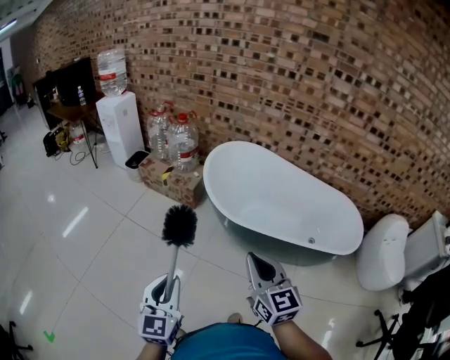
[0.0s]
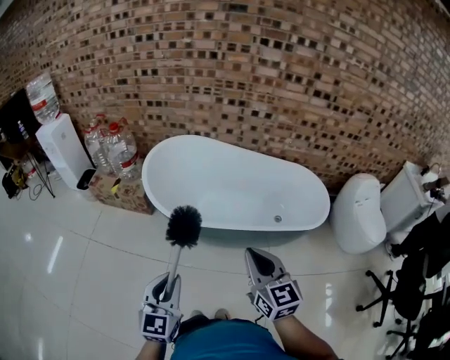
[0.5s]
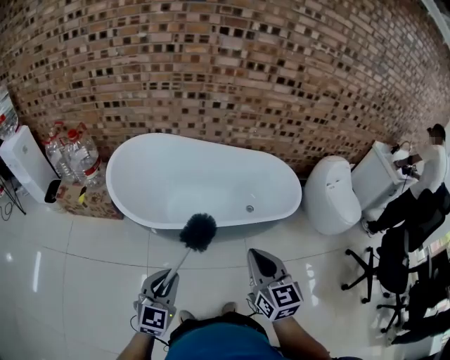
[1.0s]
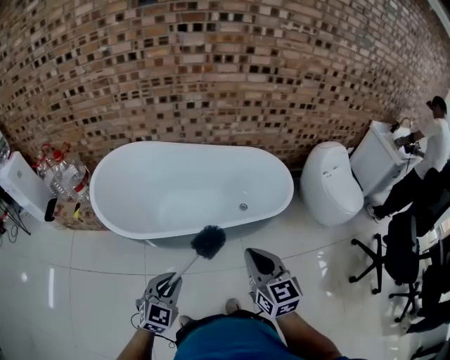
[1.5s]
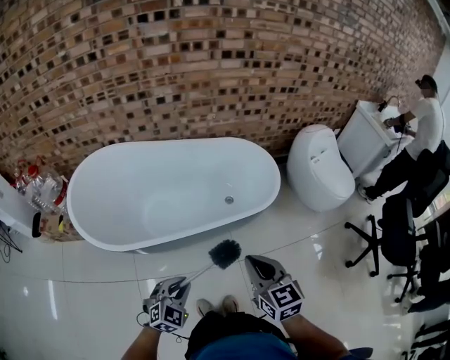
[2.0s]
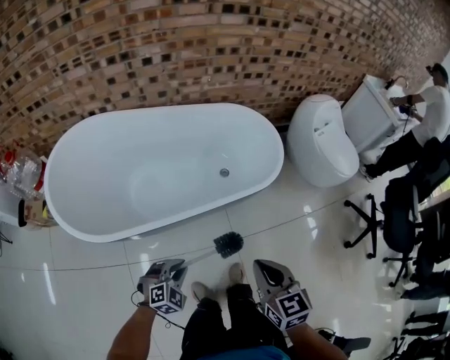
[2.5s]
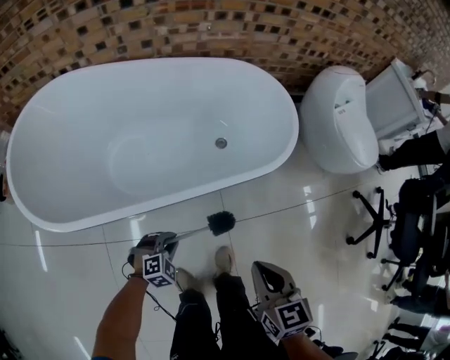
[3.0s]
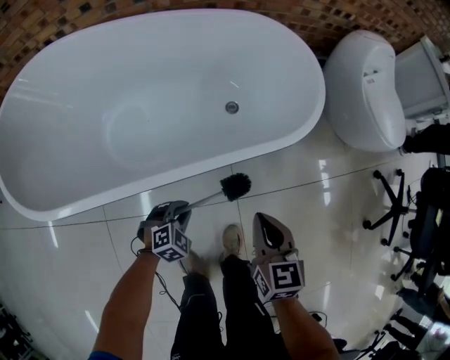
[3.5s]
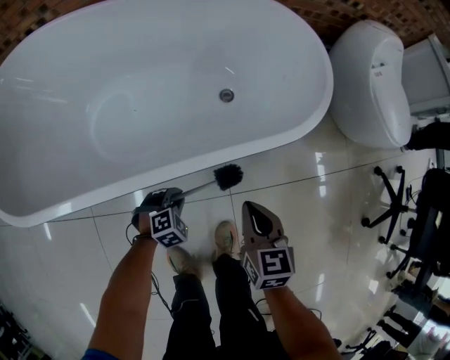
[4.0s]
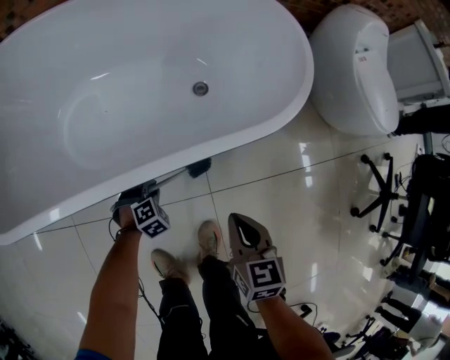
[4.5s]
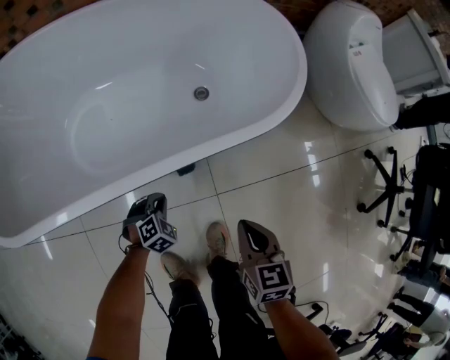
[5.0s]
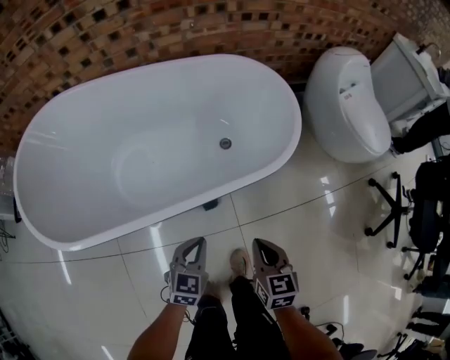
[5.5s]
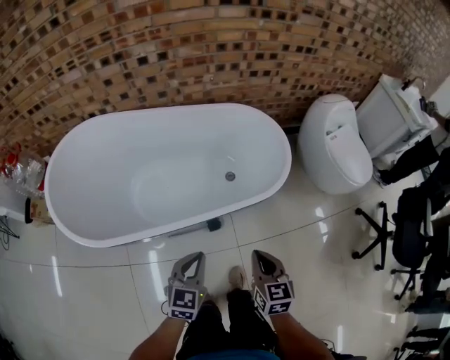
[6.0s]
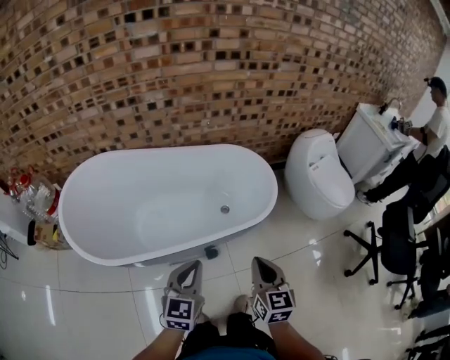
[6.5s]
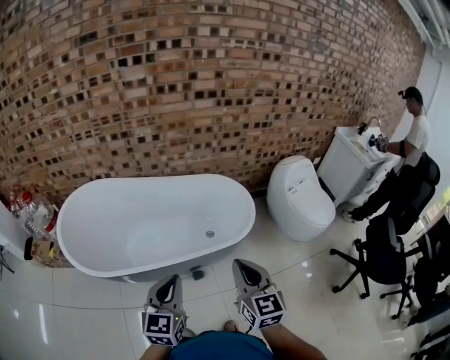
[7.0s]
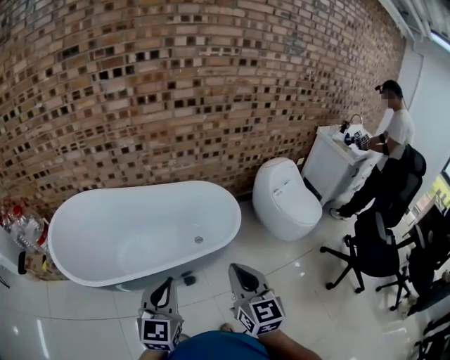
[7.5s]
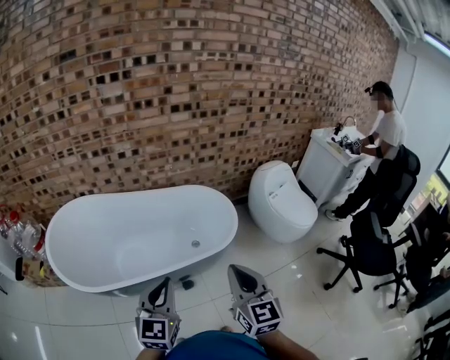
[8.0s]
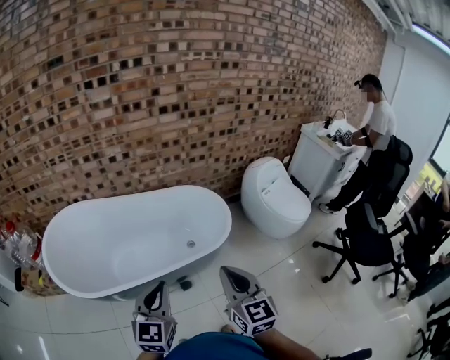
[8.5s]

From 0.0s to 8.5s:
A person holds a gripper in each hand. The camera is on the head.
From 0.0s to 2.0s: The pair of grippers is taken some 50 cm. The left gripper turns by roughly 70 degrees; the right gripper turns by about 30 degrees.
From 2.0s to 4.0s: The right gripper travels downward by approximately 50 cm, while the left gripper heads downward and forward, covering roughly 60 cm, and swivels about 30 degrees.
From 4.0s to 6.5s: The two grippers go about 50 cm upward. The left gripper points its fingers approximately 50 degrees further upward.
From 6.5s to 8.5s: The left gripper shifts roughly 15 cm upward and backward, while the right gripper moves upward, approximately 15 cm.

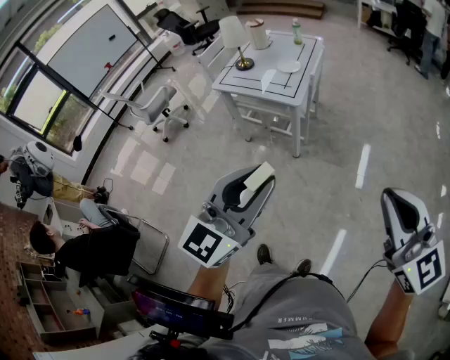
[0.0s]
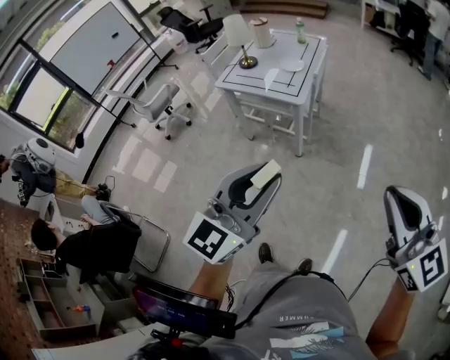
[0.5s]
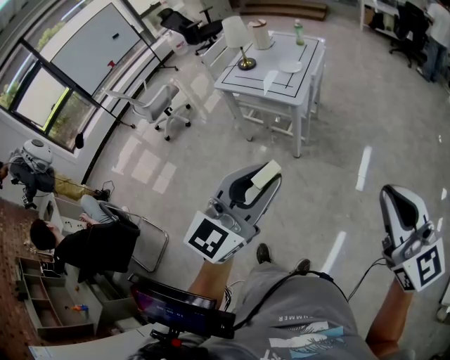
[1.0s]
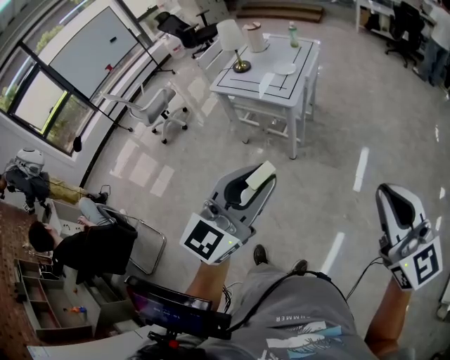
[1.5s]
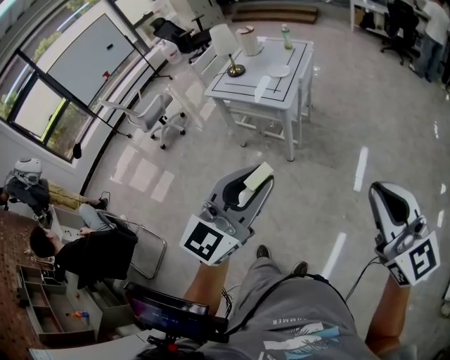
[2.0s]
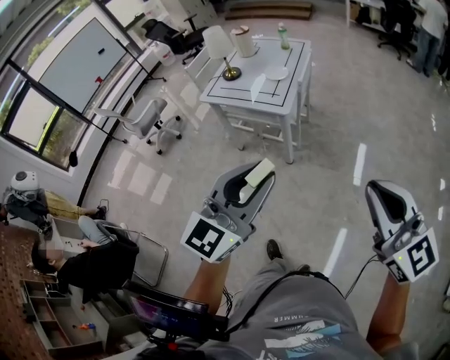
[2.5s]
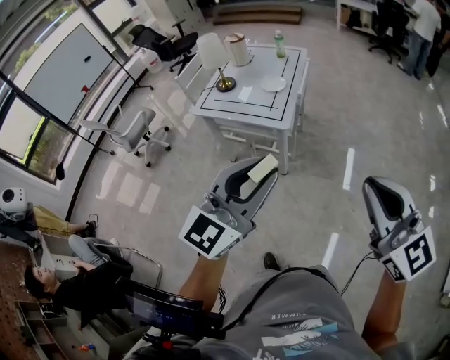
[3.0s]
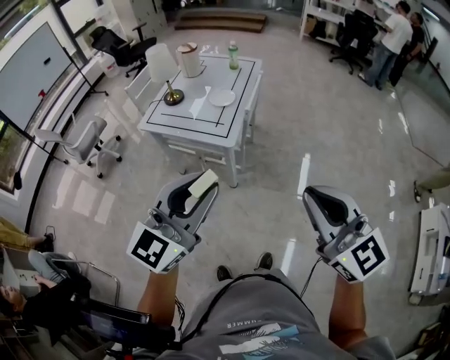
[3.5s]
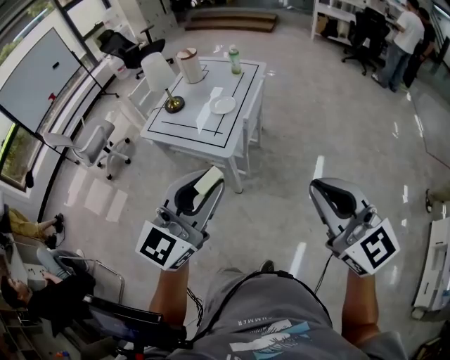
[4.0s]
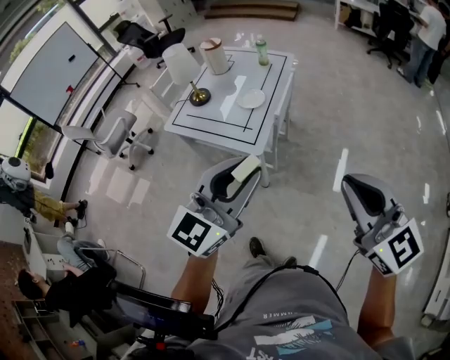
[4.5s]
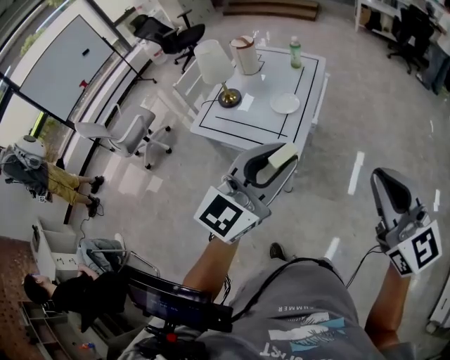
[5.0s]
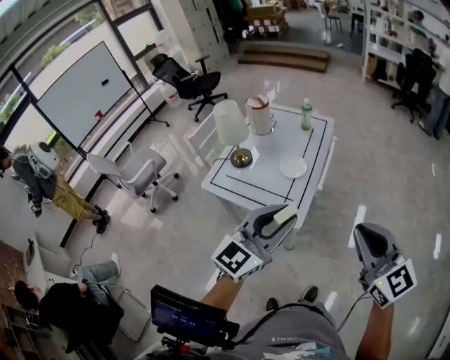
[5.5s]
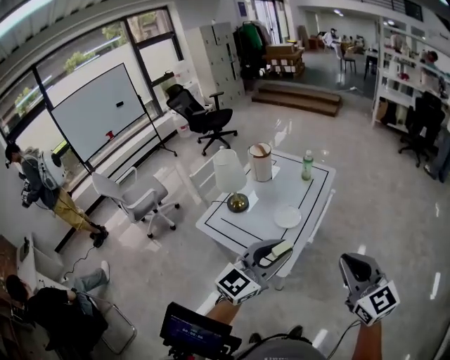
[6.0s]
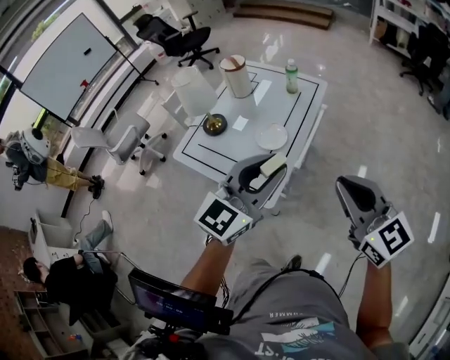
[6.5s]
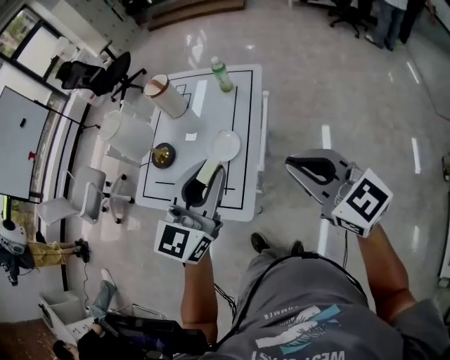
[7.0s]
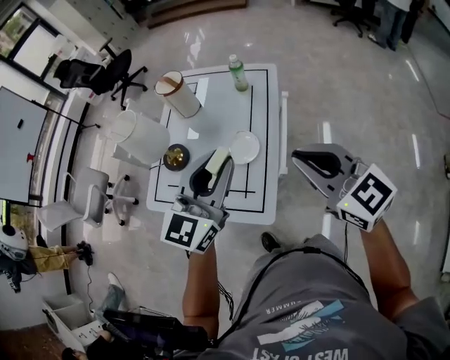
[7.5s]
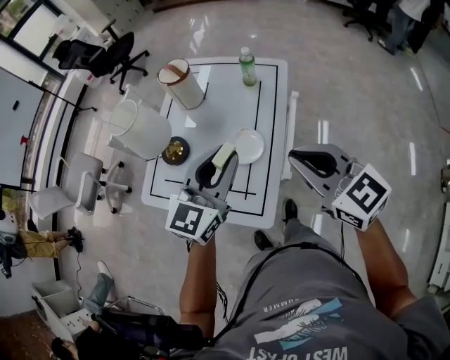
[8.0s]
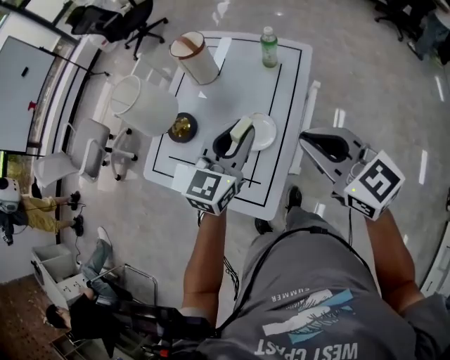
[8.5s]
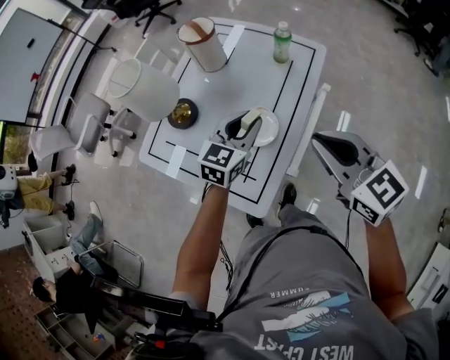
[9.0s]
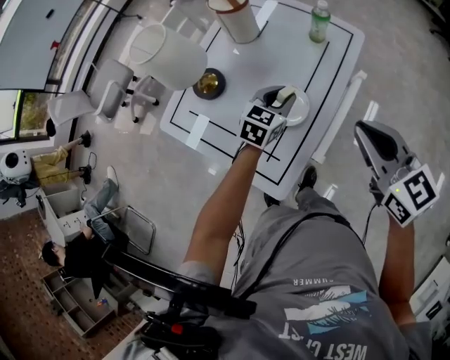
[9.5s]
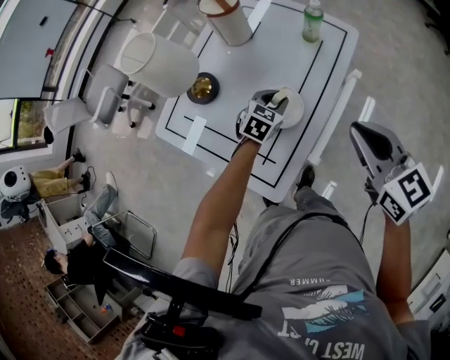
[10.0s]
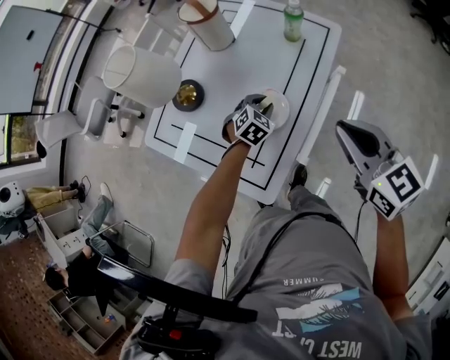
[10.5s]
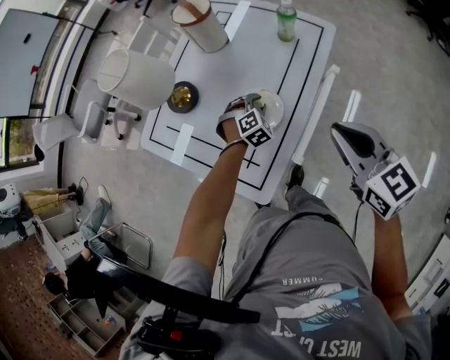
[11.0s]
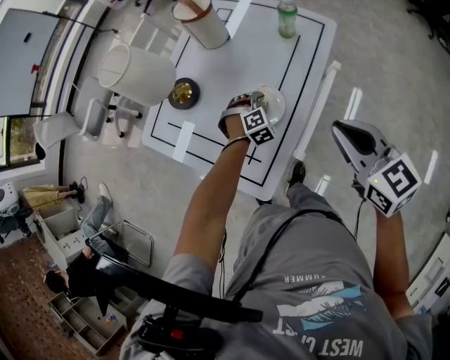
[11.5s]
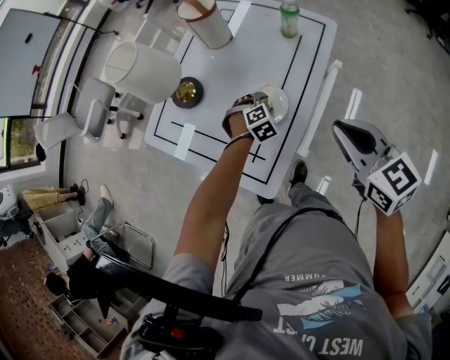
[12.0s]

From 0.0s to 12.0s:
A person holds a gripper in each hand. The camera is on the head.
From 0.0s to 2.0s: There are only small adjustments of the grippers.
From 2.0s to 4.0s: The two grippers go about 30 cm forward.
From 4.0s to 6.0s: The two grippers go about 25 cm forward.
From 6.0s to 8.0s: Both grippers travel together forward, about 25 cm.
From 8.0s to 10.0s: The left gripper goes roughly 30 cm downward and forward, and angles its fingers downward, by approximately 40 degrees; the right gripper is displaced forward, to the right and downward by approximately 15 cm.
From 10.0s to 12.0s: The left gripper shifts approximately 10 cm downward, and rotates about 40 degrees.

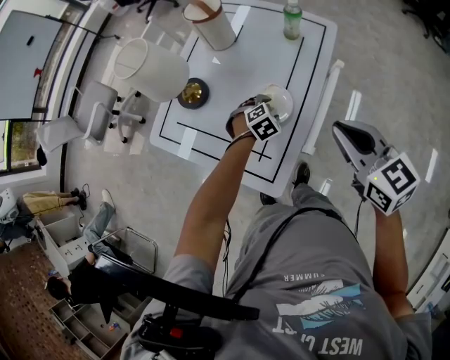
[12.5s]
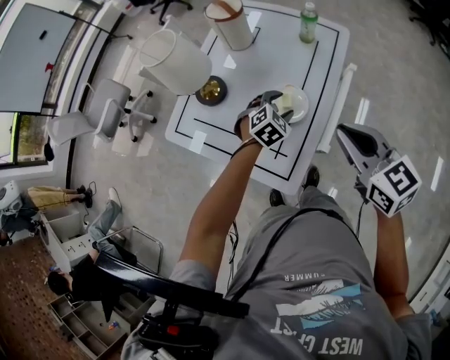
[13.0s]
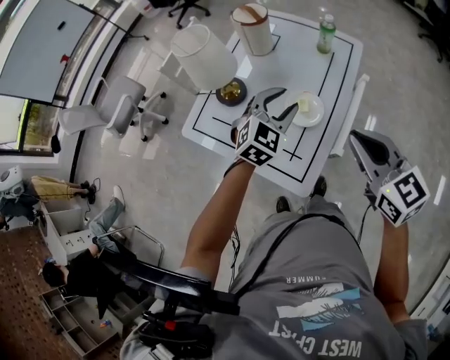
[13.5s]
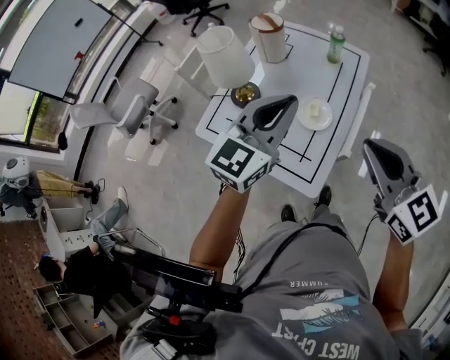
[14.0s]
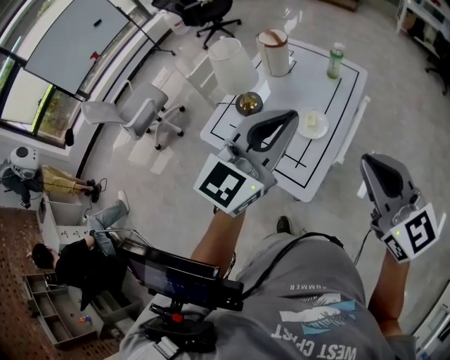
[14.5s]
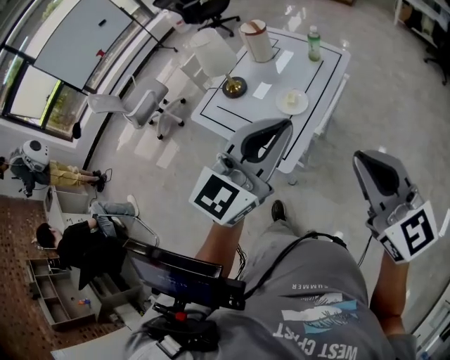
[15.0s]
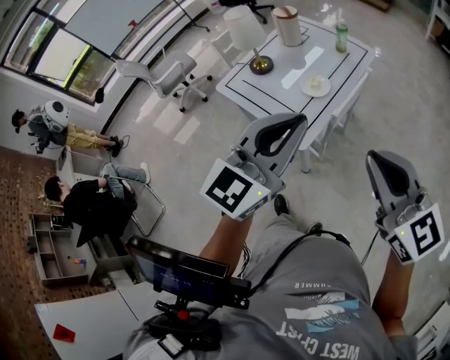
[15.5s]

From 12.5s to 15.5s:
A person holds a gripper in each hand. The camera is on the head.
From 12.5s to 14.0s: The right gripper is displaced upward, backward and to the left by roughly 15 cm. The left gripper travels upward by about 40 cm, tips its fingers upward by roughly 60 degrees, and closes.
From 14.0s to 15.5s: The right gripper travels backward and to the right by about 25 cm. The left gripper shifts about 30 cm backward.

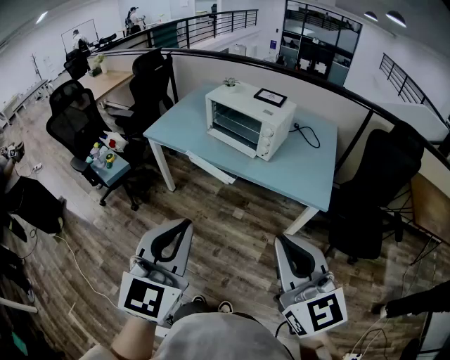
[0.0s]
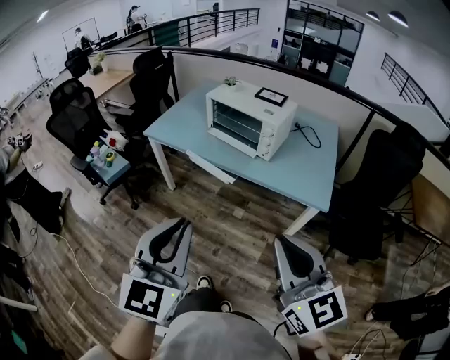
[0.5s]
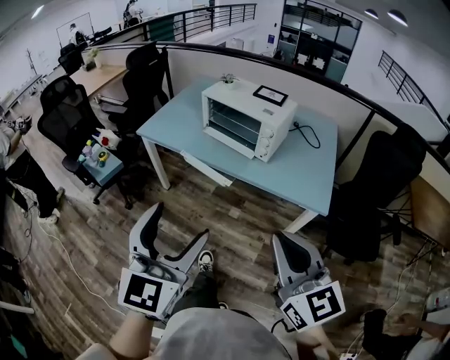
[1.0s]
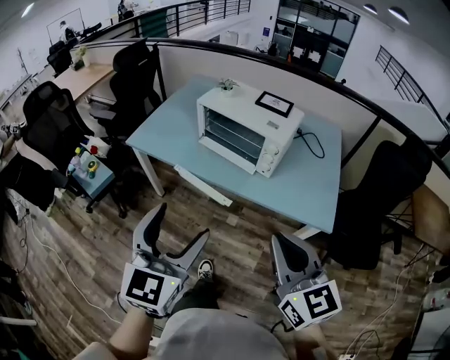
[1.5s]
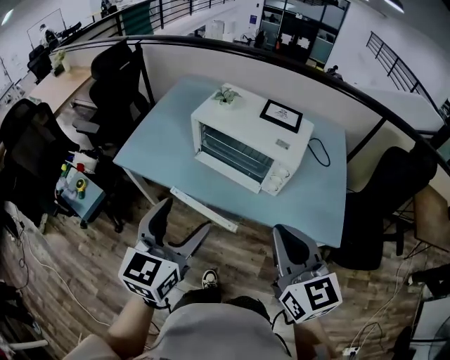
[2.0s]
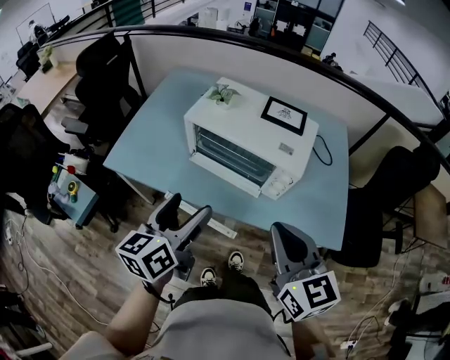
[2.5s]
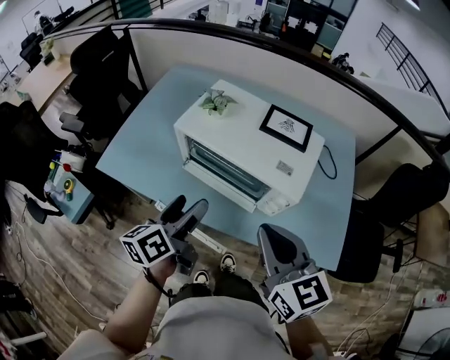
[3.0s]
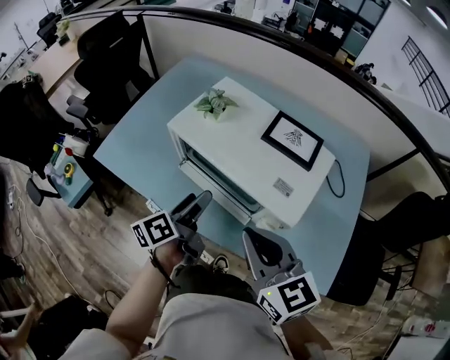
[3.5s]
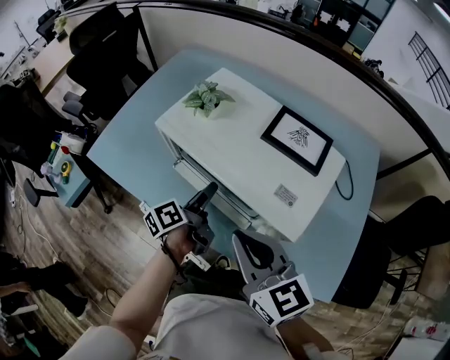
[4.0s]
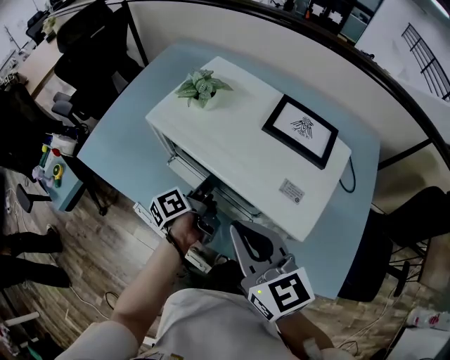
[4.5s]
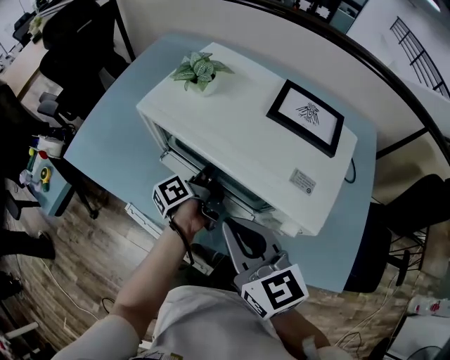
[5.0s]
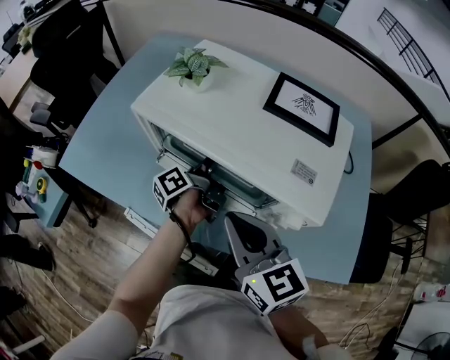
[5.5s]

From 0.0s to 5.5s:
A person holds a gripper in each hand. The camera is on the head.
From 0.0s to 2.0s: The grippers both shift forward by roughly 35 cm. The left gripper opens.
From 2.0s to 3.5s: The two grippers go about 25 cm forward and downward. The left gripper twists some 60 degrees counterclockwise, seen from behind.
From 3.5s to 5.5s: The left gripper goes roughly 20 cm downward, forward and to the right, swivels about 20 degrees, and closes up. Meanwhile the right gripper travels downward and forward by approximately 15 cm.
